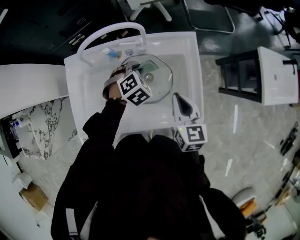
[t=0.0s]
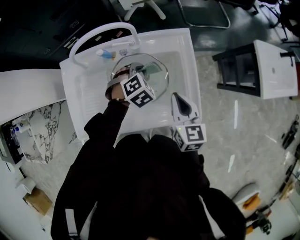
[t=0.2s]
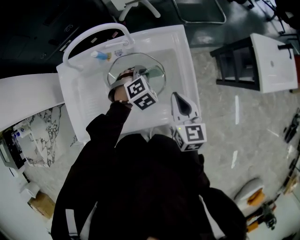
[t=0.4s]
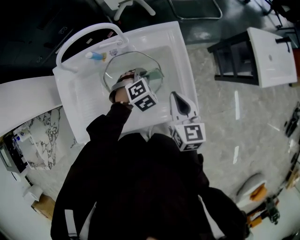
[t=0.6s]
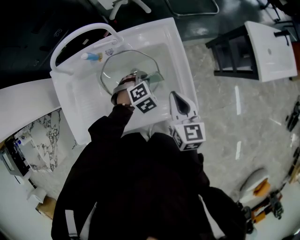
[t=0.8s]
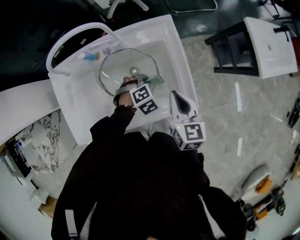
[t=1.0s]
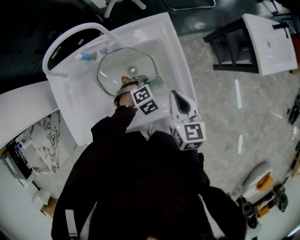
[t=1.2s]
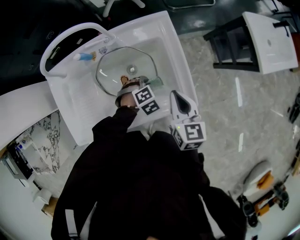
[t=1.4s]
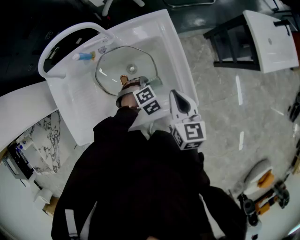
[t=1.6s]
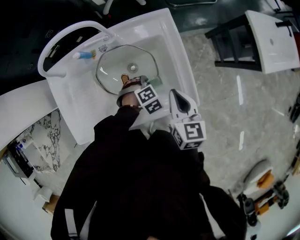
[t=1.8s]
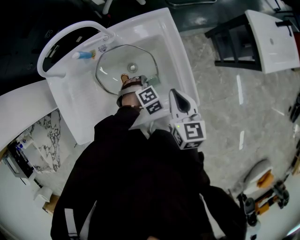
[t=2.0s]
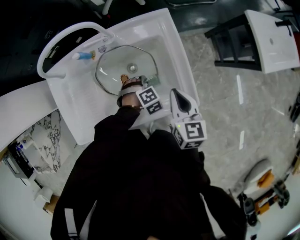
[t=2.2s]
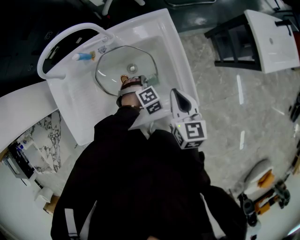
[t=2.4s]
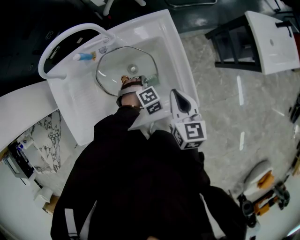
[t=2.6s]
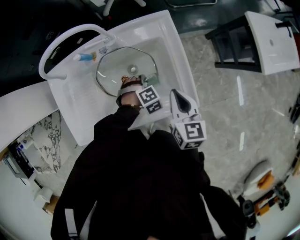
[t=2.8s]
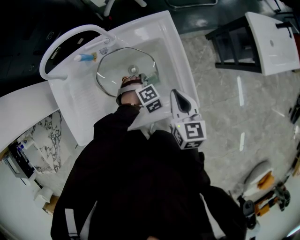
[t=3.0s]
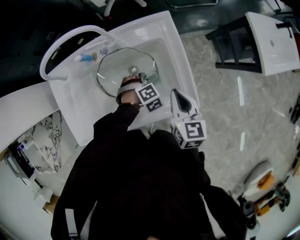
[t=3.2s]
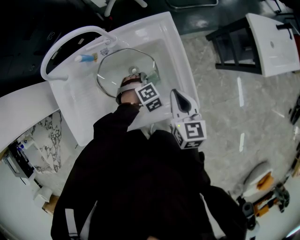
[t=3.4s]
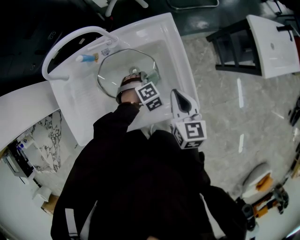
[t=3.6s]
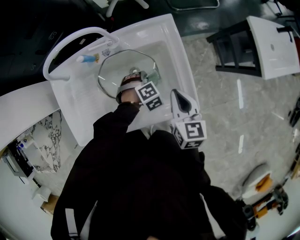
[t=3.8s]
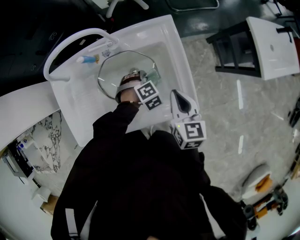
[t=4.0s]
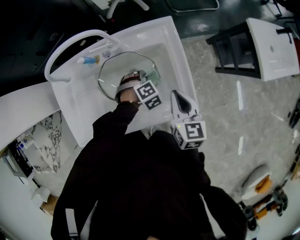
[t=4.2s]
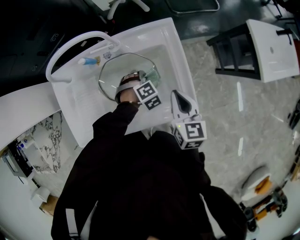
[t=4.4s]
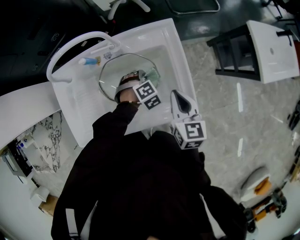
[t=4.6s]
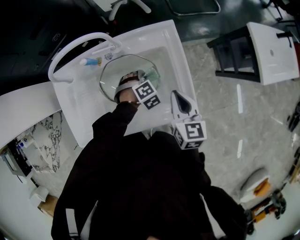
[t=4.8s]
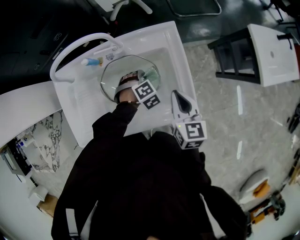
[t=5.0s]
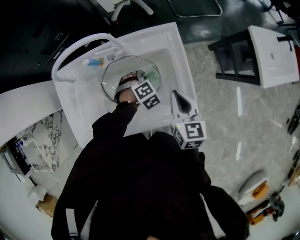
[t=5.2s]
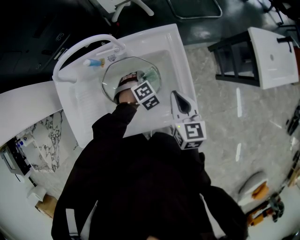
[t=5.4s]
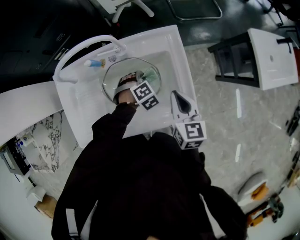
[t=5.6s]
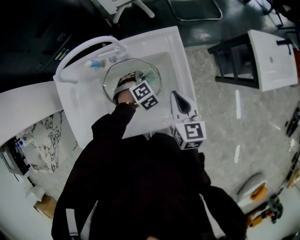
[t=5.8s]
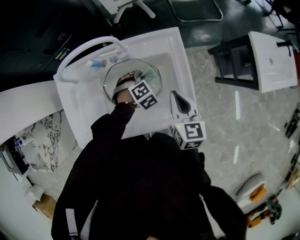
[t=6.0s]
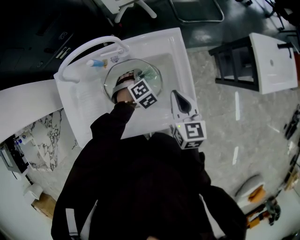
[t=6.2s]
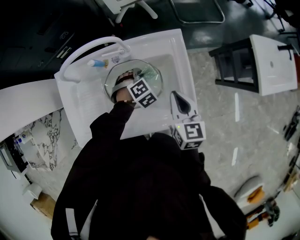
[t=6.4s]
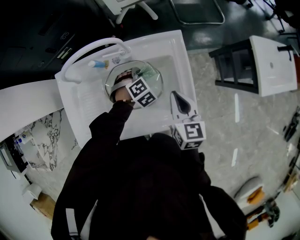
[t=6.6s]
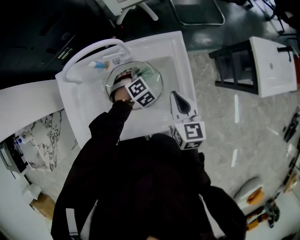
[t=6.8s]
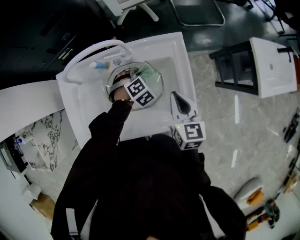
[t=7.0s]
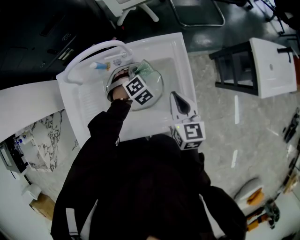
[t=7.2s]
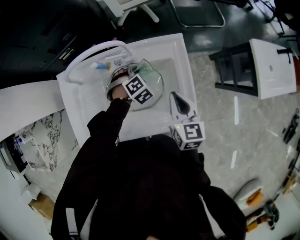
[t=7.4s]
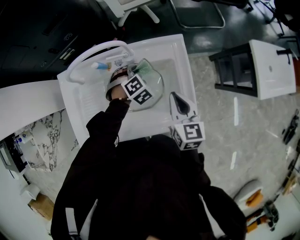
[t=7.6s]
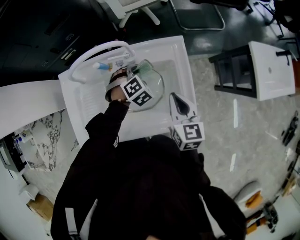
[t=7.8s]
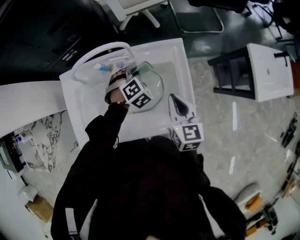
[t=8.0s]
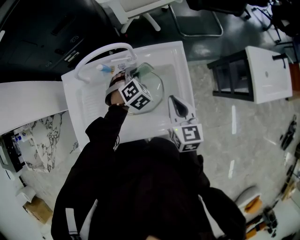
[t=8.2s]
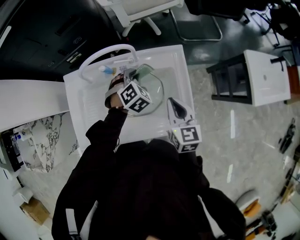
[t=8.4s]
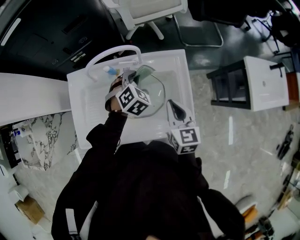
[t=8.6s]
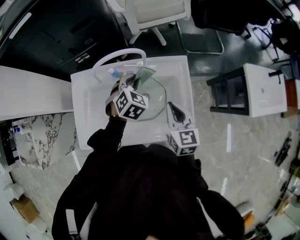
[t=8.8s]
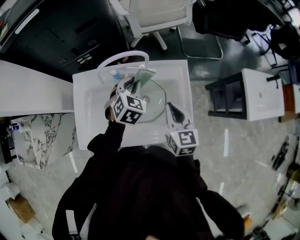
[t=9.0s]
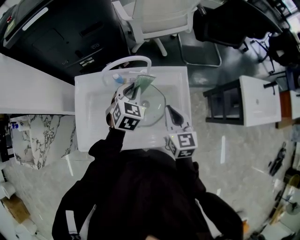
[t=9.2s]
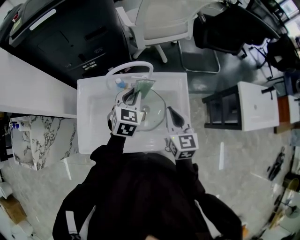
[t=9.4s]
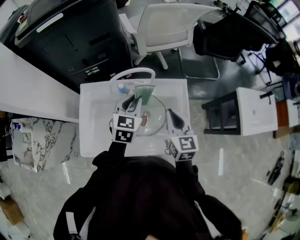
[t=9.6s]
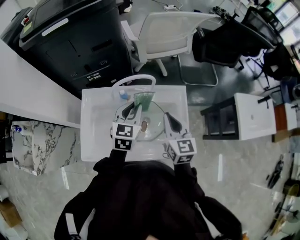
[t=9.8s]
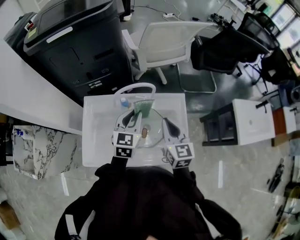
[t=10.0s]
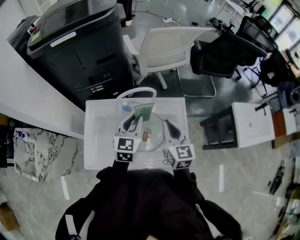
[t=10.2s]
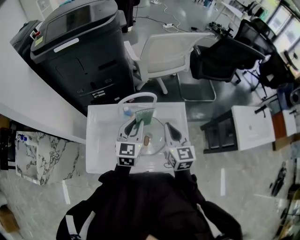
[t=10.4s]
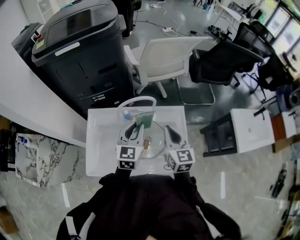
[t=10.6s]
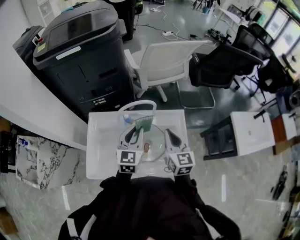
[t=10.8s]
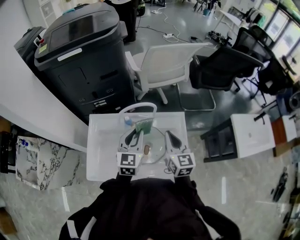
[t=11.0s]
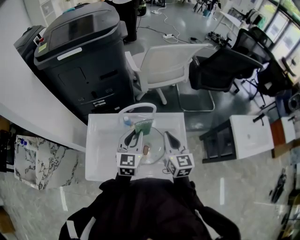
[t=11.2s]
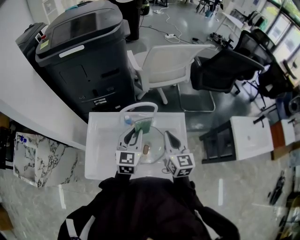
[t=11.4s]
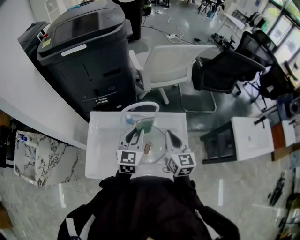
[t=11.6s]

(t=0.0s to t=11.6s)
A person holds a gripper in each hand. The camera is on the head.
t=0.0s - t=1.4s: The right gripper moves roughly 10 cm. Meanwhile the left gripper moves roughly 20 cm, and swivels roughly 20 degrees.
t=1.4s - t=2.8s: The grippers stay close to where they were, moving slightly.
t=2.8s - t=4.4s: The left gripper ends up about 5 cm from where it was.
t=4.4s - t=5.8s: The grippers make only small movements.
t=5.8s - t=7.2s: The left gripper goes about 5 cm forward.
t=7.2s - t=8.8s: The left gripper is displaced upward by some 15 cm, and swivels some 30 degrees. The right gripper heads upward, covering about 5 cm.
t=8.8s - t=10.2s: The right gripper goes approximately 10 cm upward and to the left; the left gripper heads upward and backward, covering approximately 15 cm, and rotates some 40 degrees.
t=10.2s - t=11.6s: The grippers make only small movements.

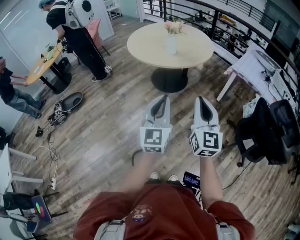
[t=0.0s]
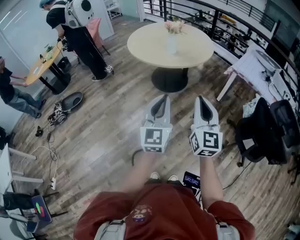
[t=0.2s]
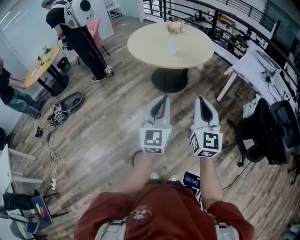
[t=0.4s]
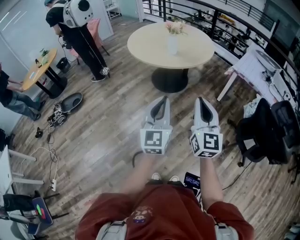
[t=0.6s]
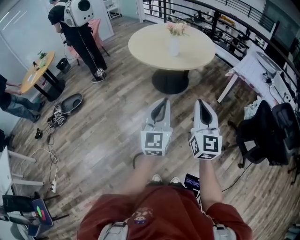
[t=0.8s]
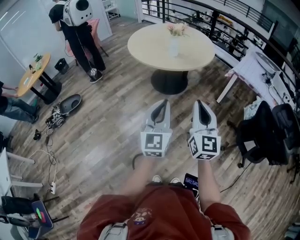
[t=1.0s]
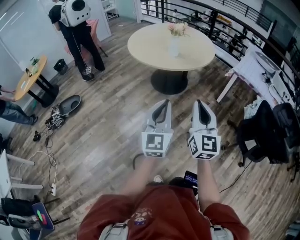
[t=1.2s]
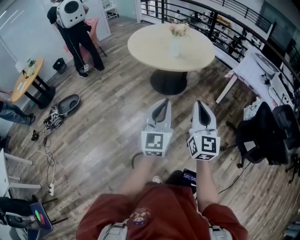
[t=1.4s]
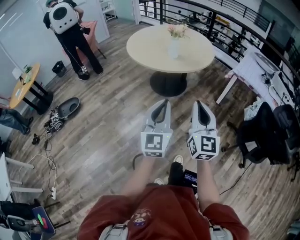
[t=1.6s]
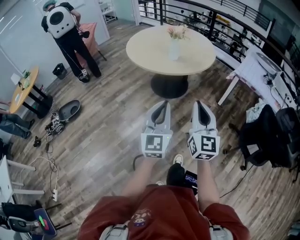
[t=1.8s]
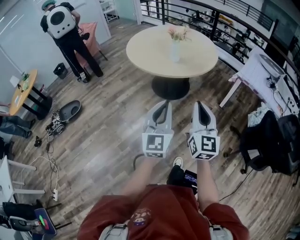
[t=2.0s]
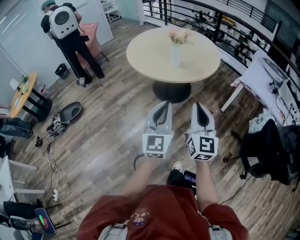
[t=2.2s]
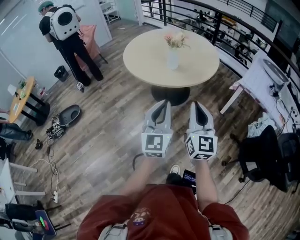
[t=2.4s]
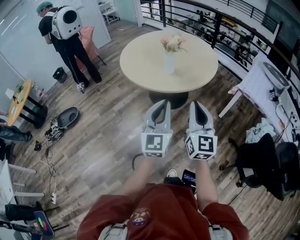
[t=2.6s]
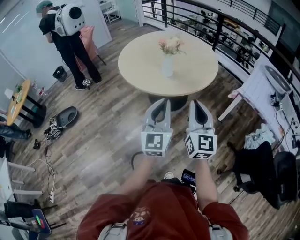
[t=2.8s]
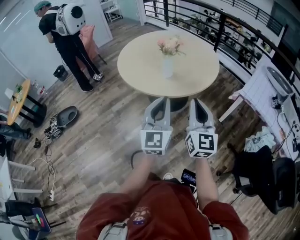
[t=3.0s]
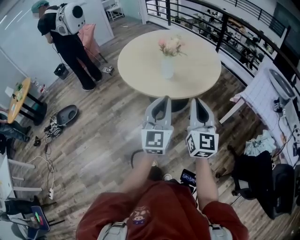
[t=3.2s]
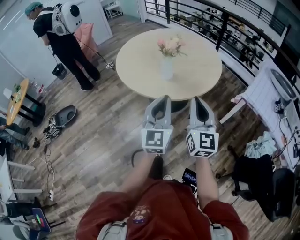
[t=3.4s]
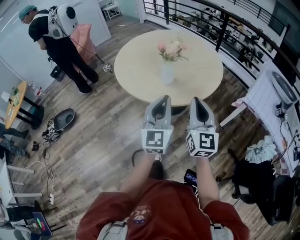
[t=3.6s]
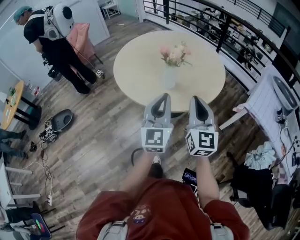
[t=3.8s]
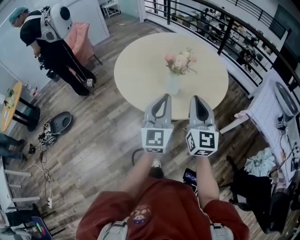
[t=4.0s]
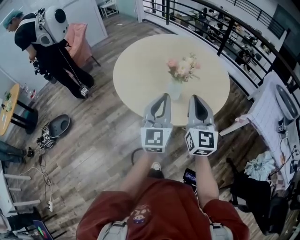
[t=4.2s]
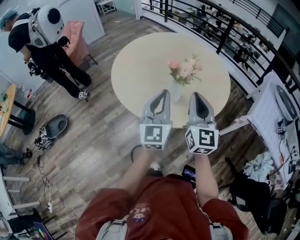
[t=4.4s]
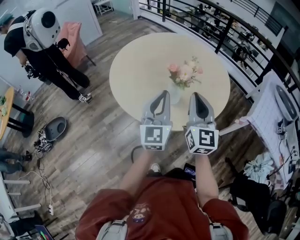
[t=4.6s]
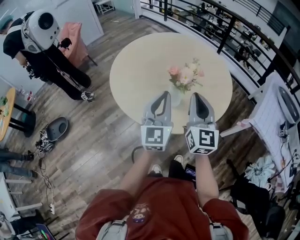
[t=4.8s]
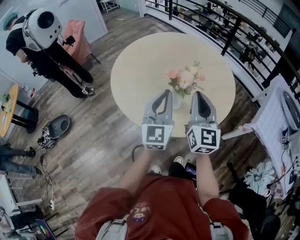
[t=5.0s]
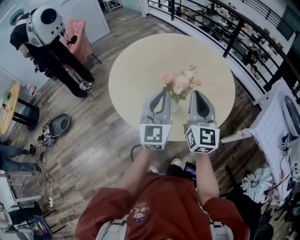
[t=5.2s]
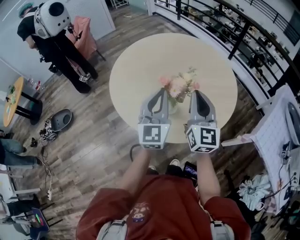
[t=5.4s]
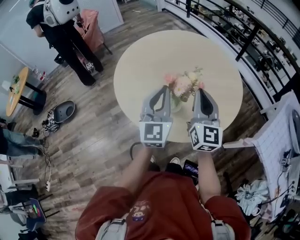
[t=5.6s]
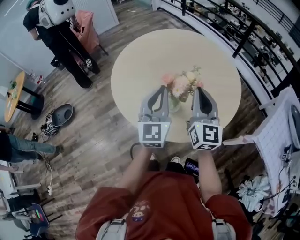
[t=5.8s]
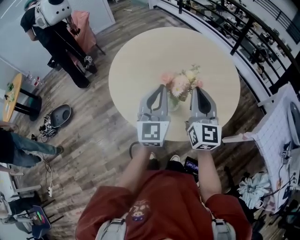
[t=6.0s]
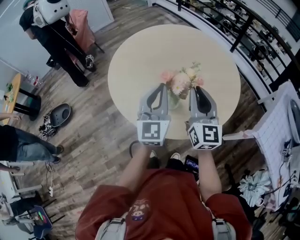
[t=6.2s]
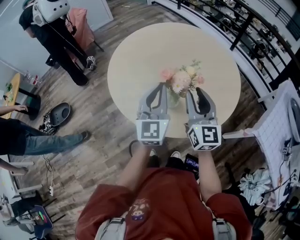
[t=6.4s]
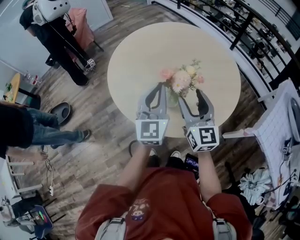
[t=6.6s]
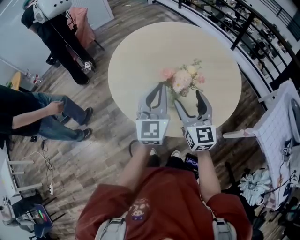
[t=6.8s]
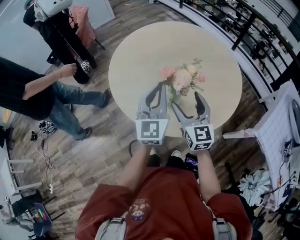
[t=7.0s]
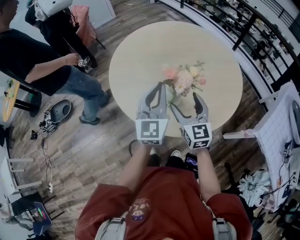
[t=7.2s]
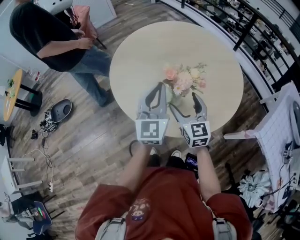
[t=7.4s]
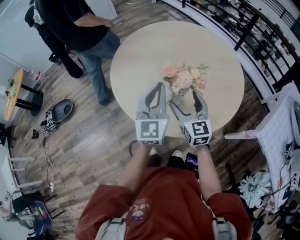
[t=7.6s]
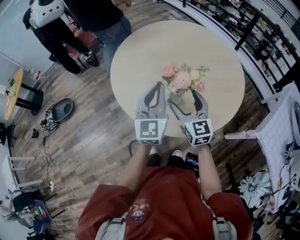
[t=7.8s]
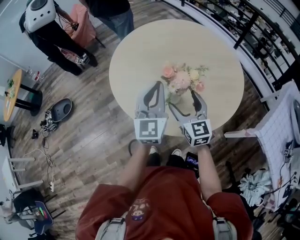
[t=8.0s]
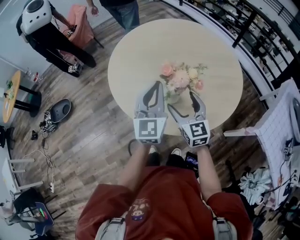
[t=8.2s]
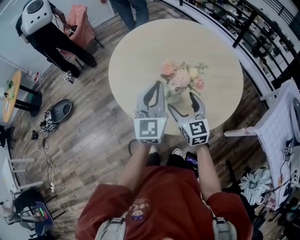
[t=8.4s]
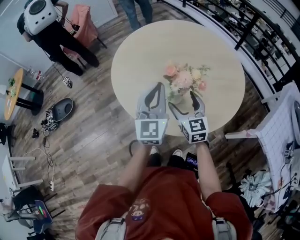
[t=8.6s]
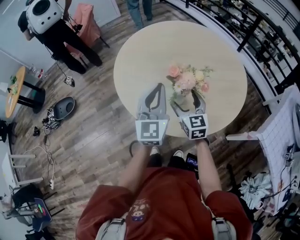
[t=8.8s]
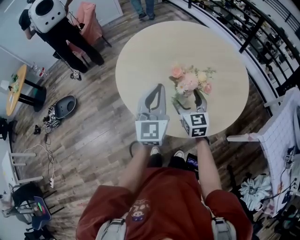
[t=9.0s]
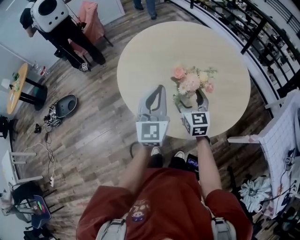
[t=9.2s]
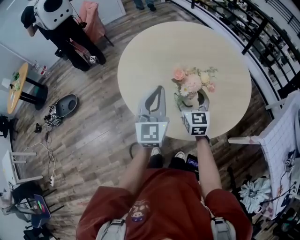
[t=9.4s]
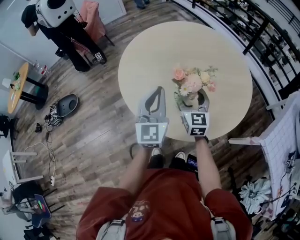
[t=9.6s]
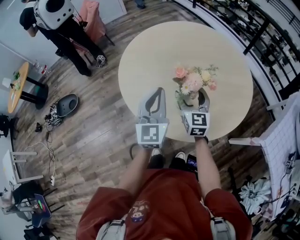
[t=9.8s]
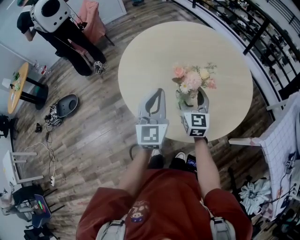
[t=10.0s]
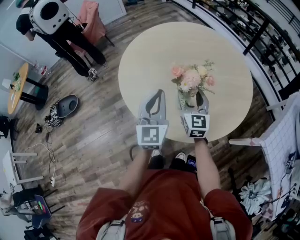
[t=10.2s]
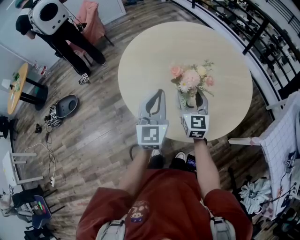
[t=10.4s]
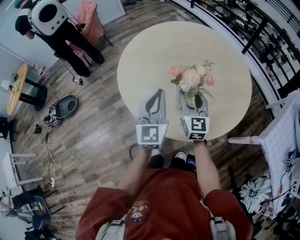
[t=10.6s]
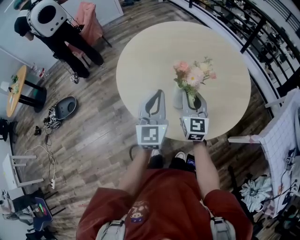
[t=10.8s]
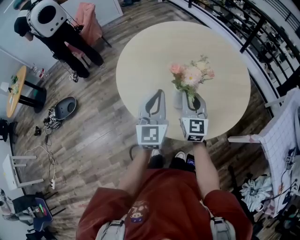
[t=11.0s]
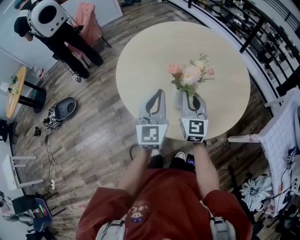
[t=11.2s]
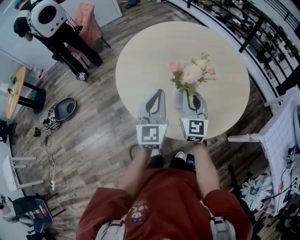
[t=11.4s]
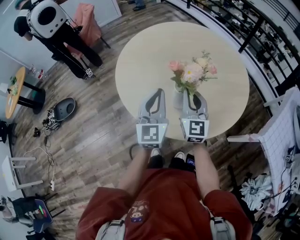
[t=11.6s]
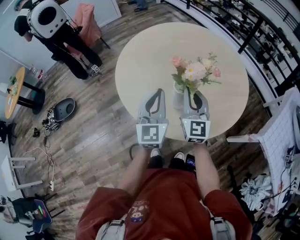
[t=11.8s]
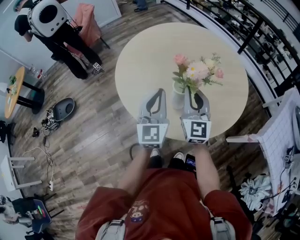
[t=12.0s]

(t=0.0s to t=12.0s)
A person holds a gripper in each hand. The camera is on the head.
t=0.0s - t=1.6s: The two grippers go some 5 cm to the left.
t=1.6s - t=3.0s: Both grippers move forward, some 30 cm.
t=3.0s - t=4.4s: Both grippers travel together forward, some 30 cm.
t=4.4s - t=6.0s: Both grippers travel together forward, about 15 cm.
t=6.0s - t=7.6s: The right gripper is displaced downward and to the left by about 10 cm, turns by roughly 20 degrees, and opens up.
t=7.6s - t=9.0s: The grippers make only small movements.
t=9.0s - t=10.4s: The right gripper closes.
t=10.4s - t=12.0s: The right gripper is displaced upward by some 5 cm, and closes.
